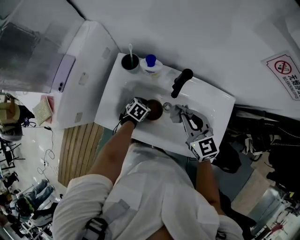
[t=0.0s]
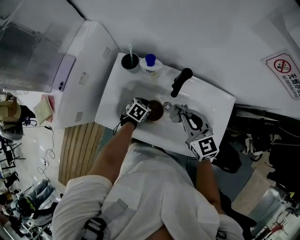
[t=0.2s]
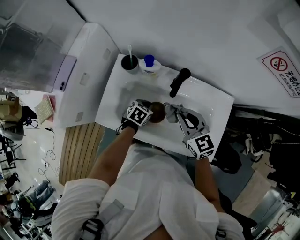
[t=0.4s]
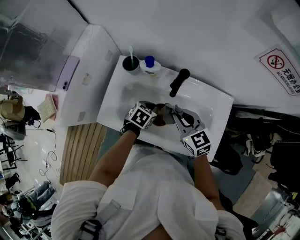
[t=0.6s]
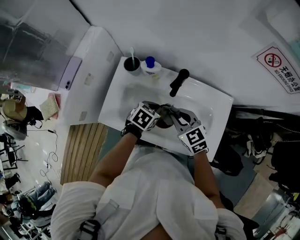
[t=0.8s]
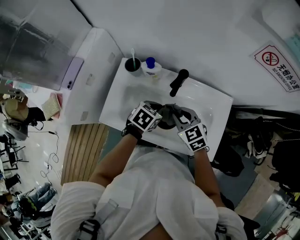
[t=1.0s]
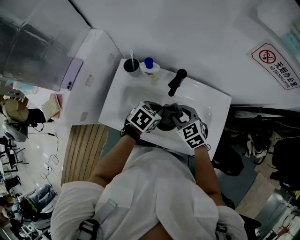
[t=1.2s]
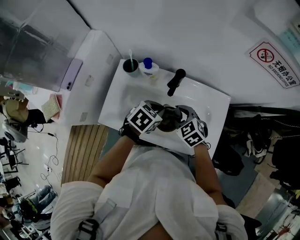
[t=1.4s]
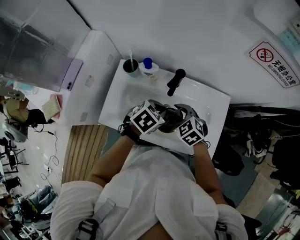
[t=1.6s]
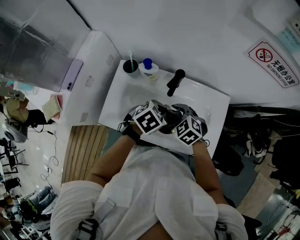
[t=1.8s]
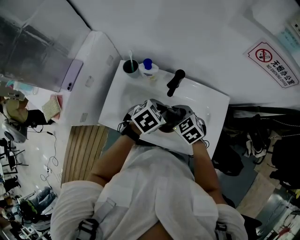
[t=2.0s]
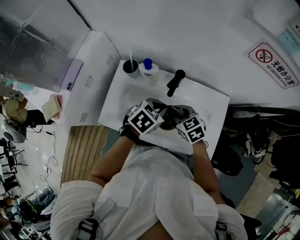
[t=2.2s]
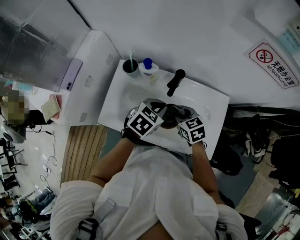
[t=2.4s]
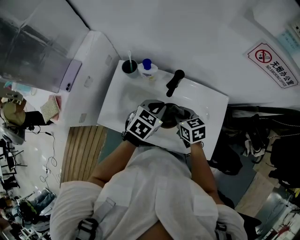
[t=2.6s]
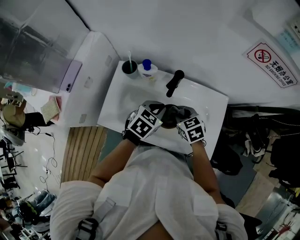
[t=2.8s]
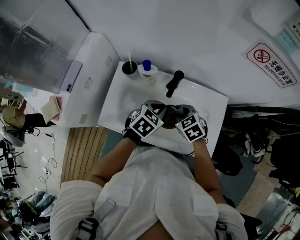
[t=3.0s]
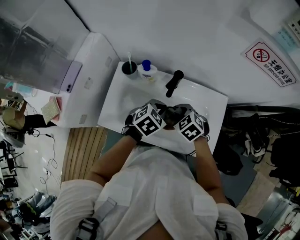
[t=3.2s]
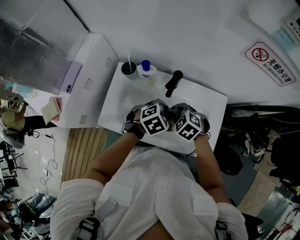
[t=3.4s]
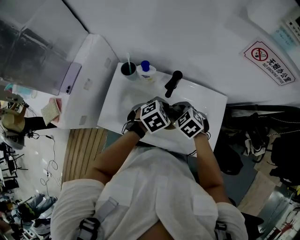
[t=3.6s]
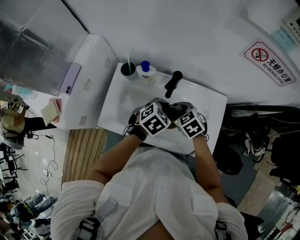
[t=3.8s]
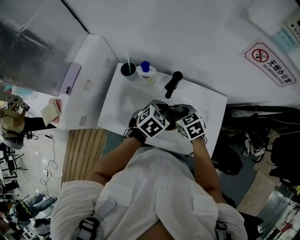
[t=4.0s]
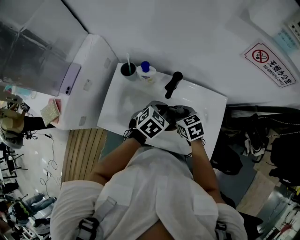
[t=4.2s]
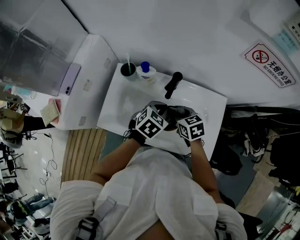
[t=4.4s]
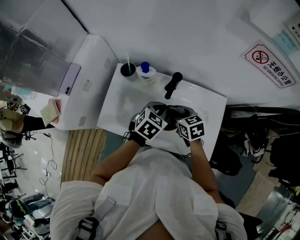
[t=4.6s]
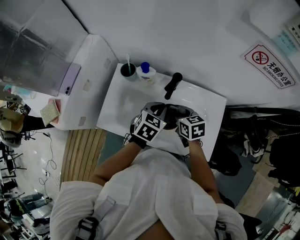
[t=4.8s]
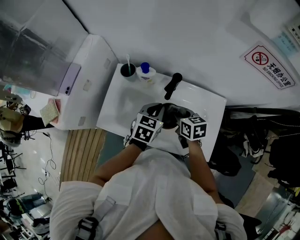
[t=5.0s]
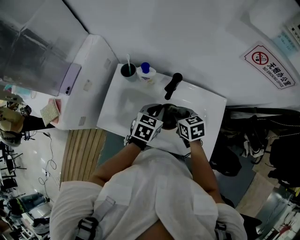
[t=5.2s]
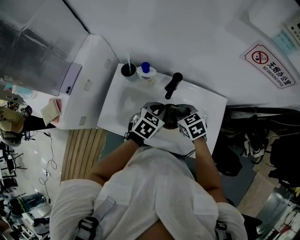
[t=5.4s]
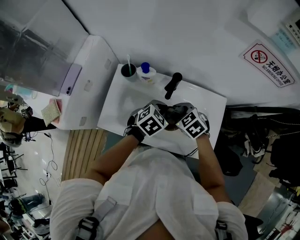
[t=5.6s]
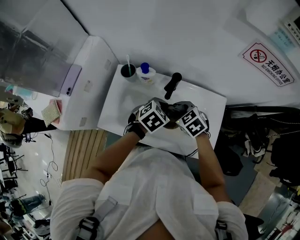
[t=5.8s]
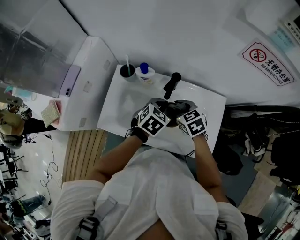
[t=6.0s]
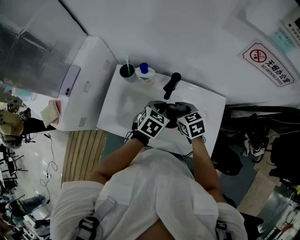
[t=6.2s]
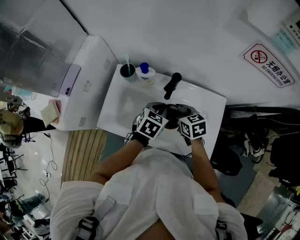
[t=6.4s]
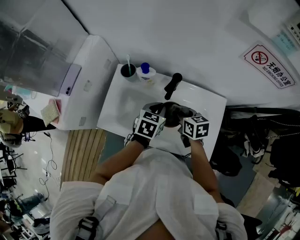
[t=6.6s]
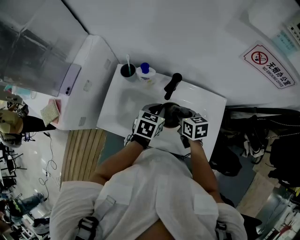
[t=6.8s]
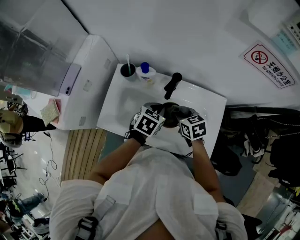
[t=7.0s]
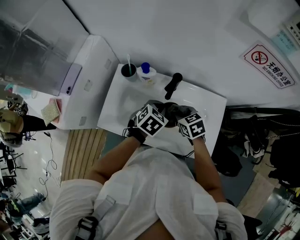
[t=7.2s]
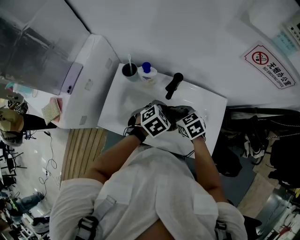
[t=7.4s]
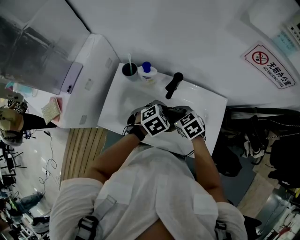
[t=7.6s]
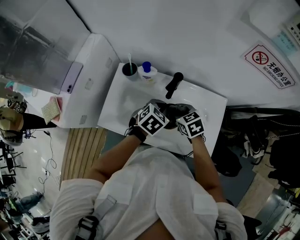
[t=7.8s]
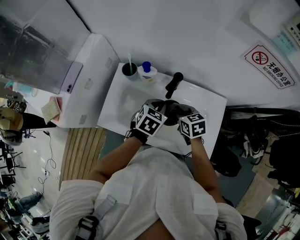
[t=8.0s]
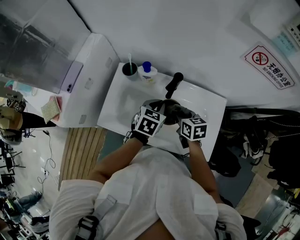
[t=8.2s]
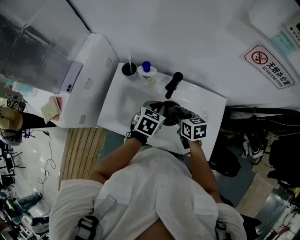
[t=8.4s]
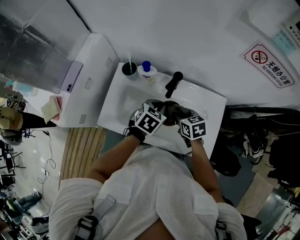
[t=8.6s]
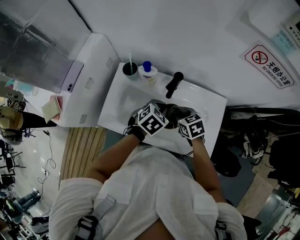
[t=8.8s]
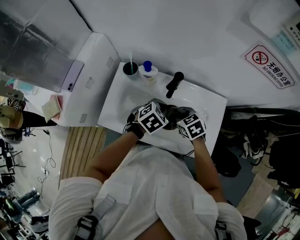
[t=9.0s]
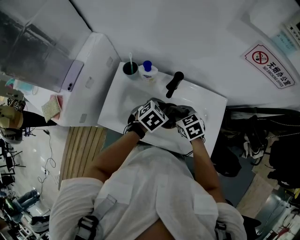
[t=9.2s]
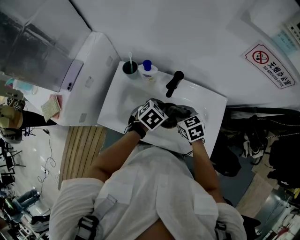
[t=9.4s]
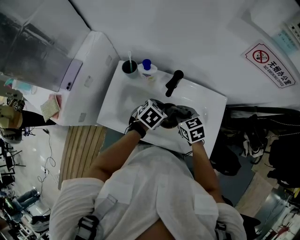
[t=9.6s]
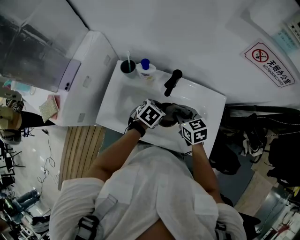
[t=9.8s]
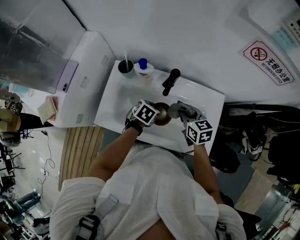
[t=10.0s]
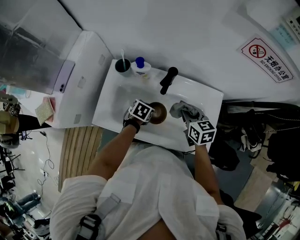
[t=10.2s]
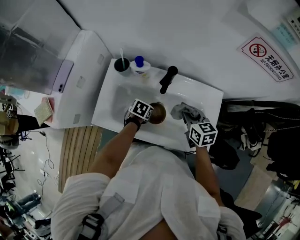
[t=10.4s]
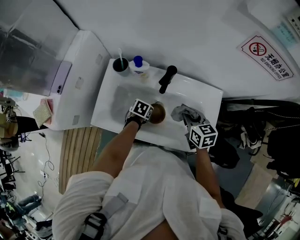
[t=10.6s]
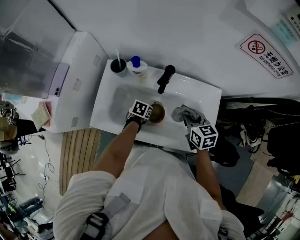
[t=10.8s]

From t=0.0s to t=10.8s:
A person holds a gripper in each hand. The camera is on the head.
From t=0.0s to t=1.6s: The right gripper travels downward by about 5 cm, rotates roughly 30 degrees, and opens up, while the left gripper moves upward and to the right, about 25 cm.
From t=1.6s to t=3.0s: The right gripper closes.
From t=3.0s to t=4.6s: The right gripper swivels about 20 degrees.
From t=9.2s to t=10.8s: The right gripper travels to the right by approximately 10 cm, and turns by approximately 30 degrees. Meanwhile the left gripper is displaced downward by about 20 cm, and rotates some 30 degrees.

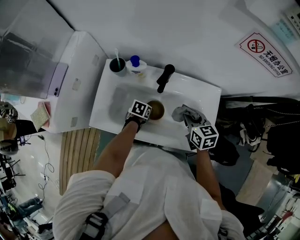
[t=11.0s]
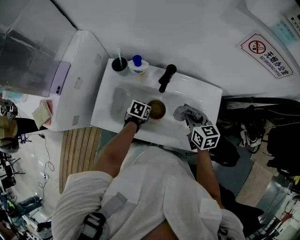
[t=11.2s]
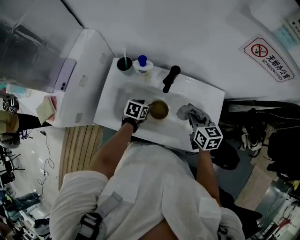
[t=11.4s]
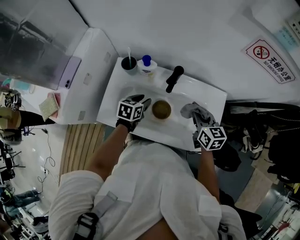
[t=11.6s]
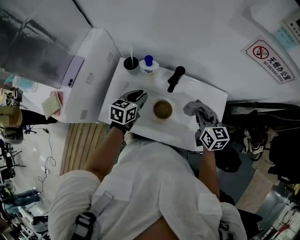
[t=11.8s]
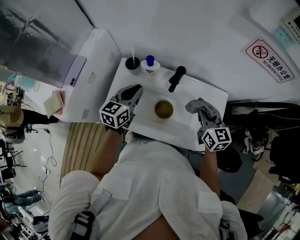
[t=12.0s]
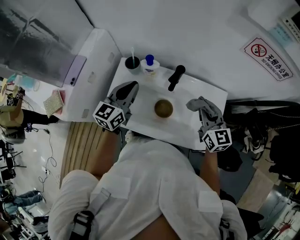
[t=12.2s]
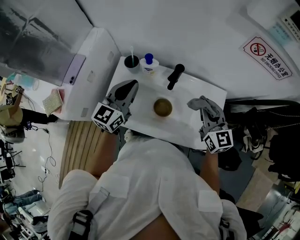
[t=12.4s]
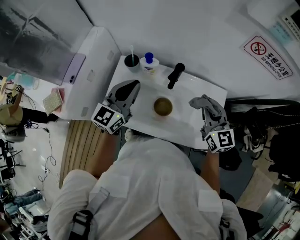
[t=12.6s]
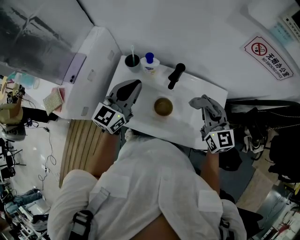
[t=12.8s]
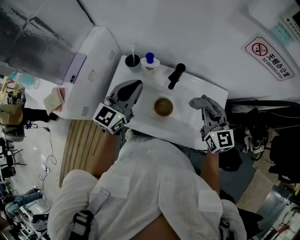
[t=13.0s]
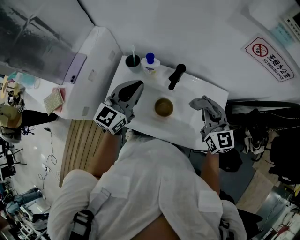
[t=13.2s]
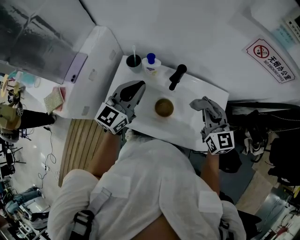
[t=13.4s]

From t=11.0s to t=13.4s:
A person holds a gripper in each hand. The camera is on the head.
From t=11.0s to t=12.2s: The left gripper goes roughly 30 cm upward, tips its fingers upward by roughly 50 degrees, and closes up, while the right gripper goes approximately 10 cm upward, and changes its angle by about 30 degrees.
From t=12.2s to t=13.4s: The left gripper ends up approximately 5 cm from where it was.

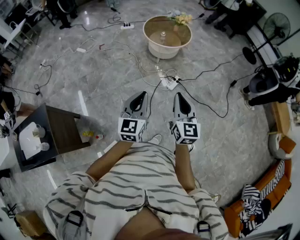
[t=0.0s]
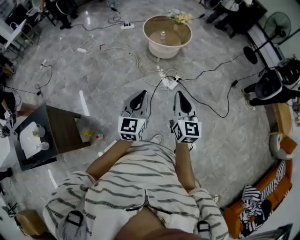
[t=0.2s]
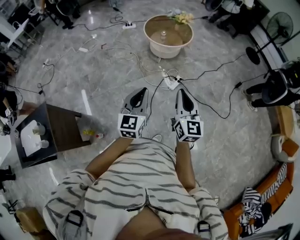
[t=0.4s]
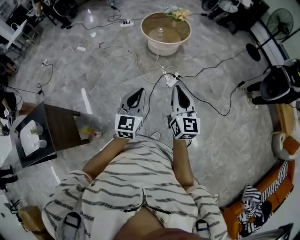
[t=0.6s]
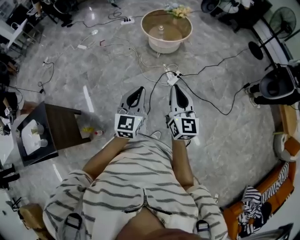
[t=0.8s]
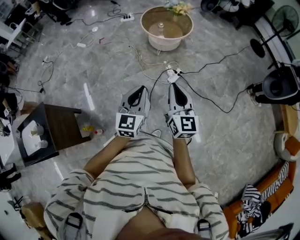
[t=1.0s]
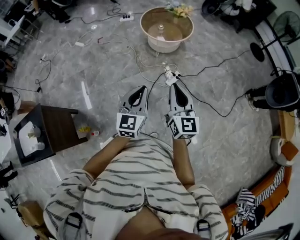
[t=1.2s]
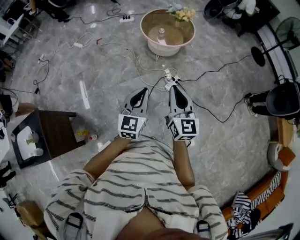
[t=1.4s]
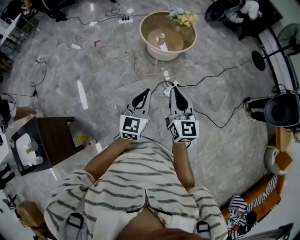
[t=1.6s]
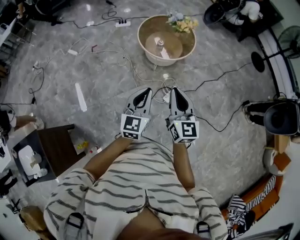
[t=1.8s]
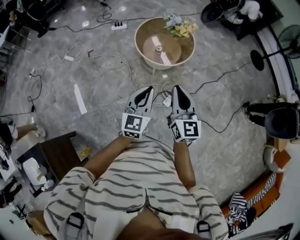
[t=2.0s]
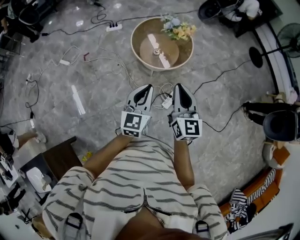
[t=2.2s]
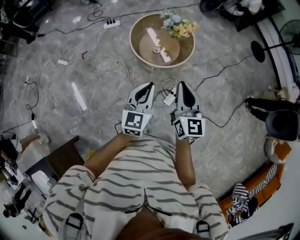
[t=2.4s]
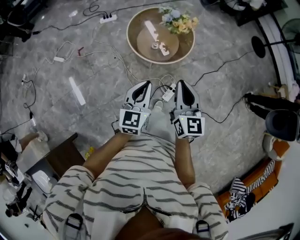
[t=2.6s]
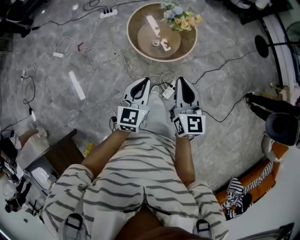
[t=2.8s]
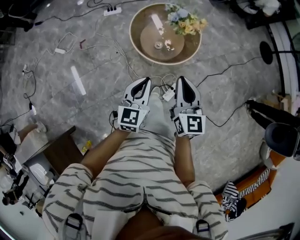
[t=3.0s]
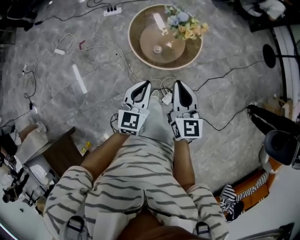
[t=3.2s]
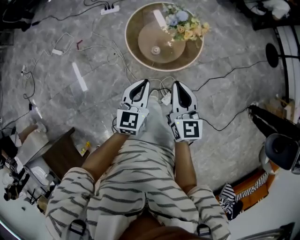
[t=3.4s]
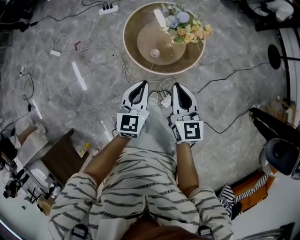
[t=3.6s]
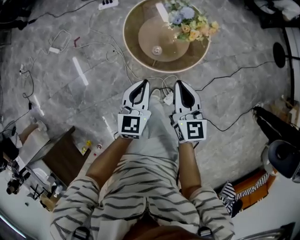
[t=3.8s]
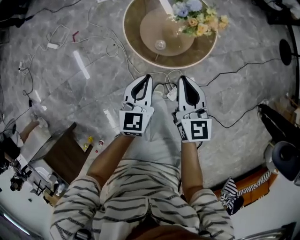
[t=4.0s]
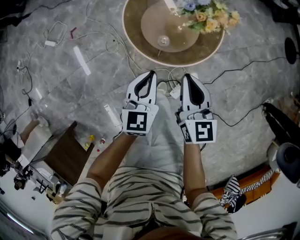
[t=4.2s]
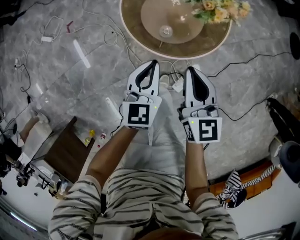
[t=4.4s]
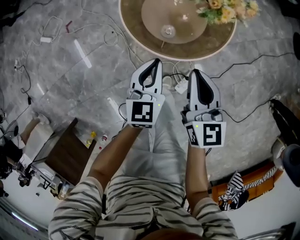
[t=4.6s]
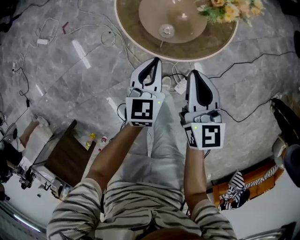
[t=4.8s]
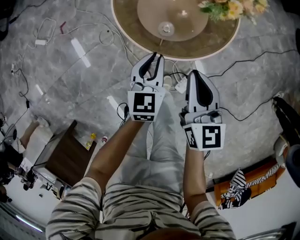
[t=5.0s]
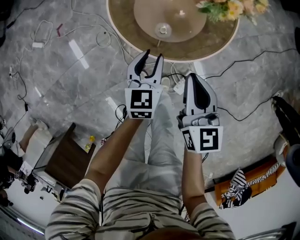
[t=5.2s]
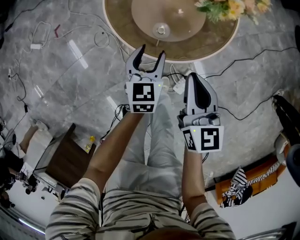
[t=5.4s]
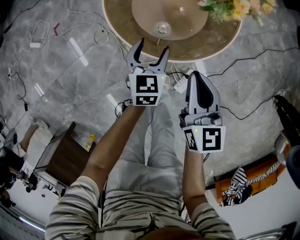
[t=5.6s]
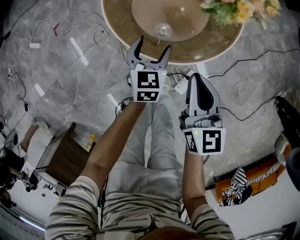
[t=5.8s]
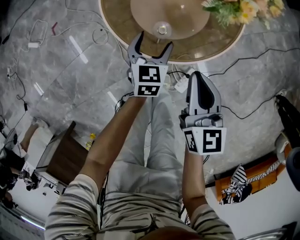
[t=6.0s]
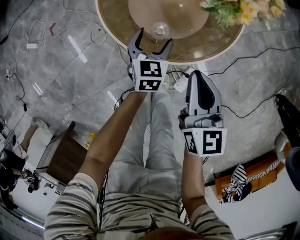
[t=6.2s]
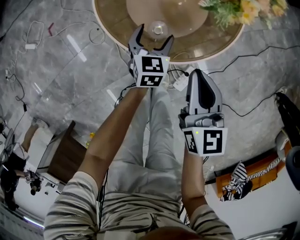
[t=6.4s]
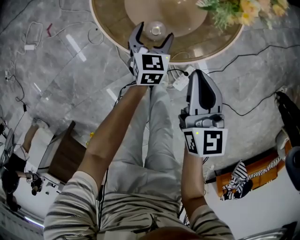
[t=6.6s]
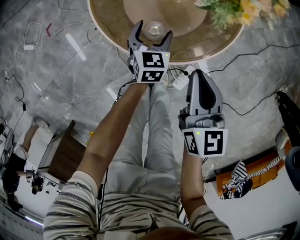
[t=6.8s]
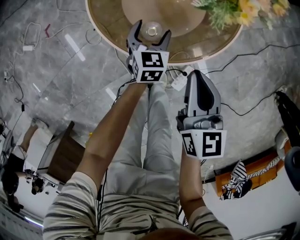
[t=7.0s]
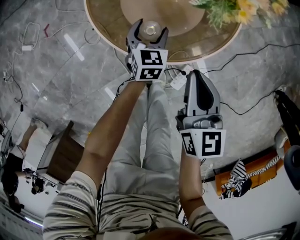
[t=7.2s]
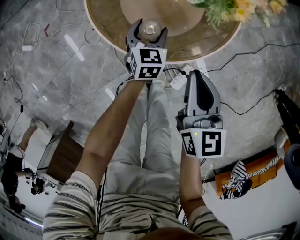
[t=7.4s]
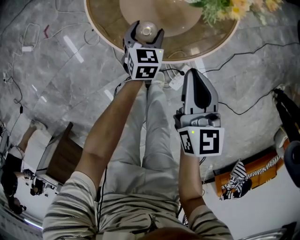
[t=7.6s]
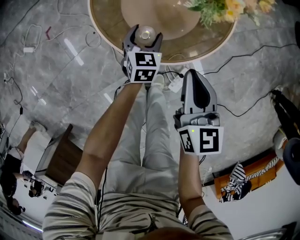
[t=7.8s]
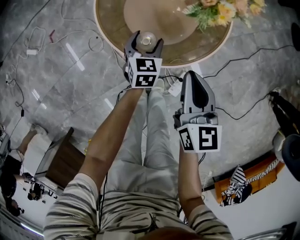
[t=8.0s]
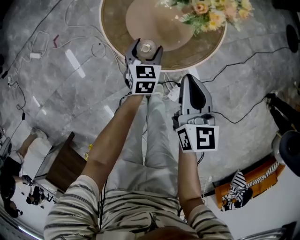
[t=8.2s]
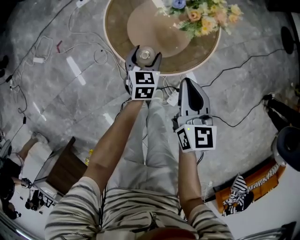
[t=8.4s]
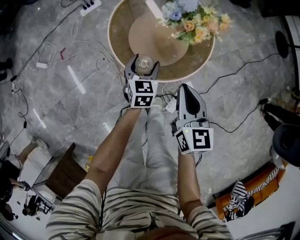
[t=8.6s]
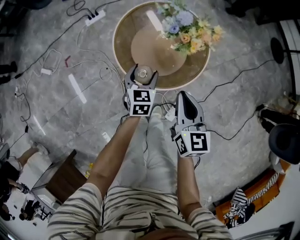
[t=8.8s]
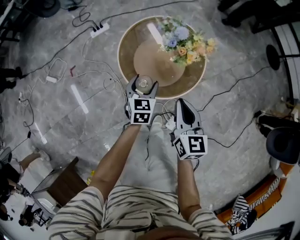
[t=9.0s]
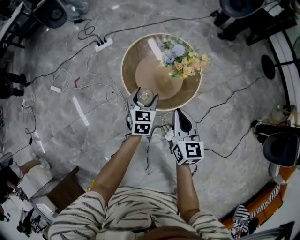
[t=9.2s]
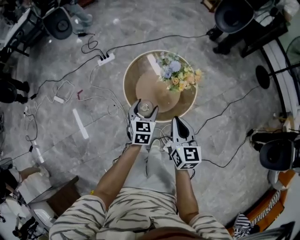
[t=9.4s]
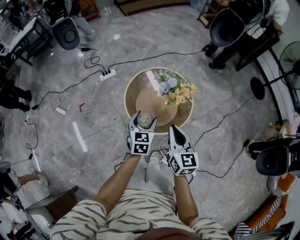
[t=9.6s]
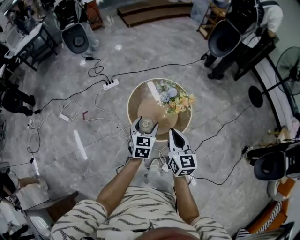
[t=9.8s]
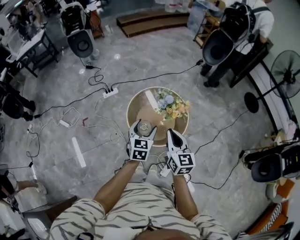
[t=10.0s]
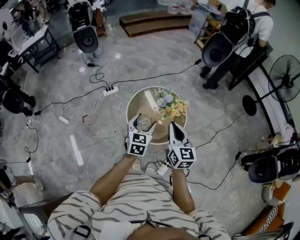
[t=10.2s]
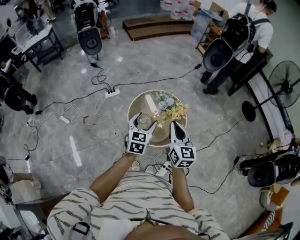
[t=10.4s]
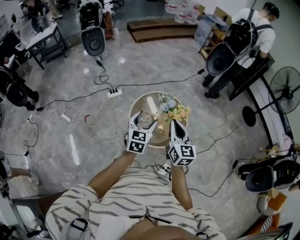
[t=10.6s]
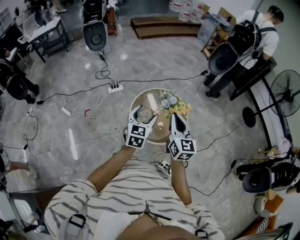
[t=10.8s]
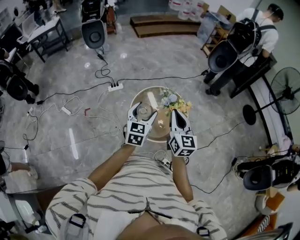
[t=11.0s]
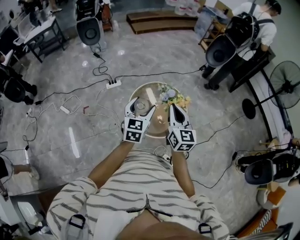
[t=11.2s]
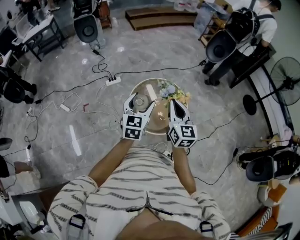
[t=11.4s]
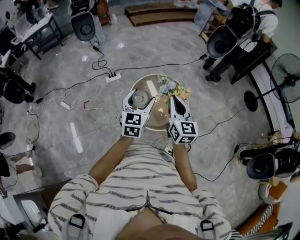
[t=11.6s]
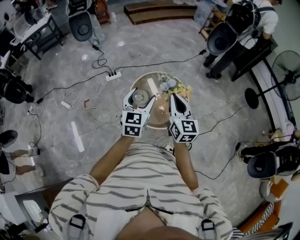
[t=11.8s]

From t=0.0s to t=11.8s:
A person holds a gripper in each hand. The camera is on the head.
From t=0.0s to t=1.4s: The left gripper shifts some 15 cm forward and to the right; the right gripper shifts about 15 cm forward.
From t=1.4s to t=3.0s: The pair of grippers is taken forward, roughly 50 cm.
From t=3.0s to t=4.4s: The grippers both shift downward and forward by roughly 25 cm.
From t=4.4s to t=6.0s: The left gripper moves downward, about 25 cm, and opens, while the right gripper moves downward, approximately 15 cm.
From t=6.0s to t=7.4s: The left gripper shifts some 5 cm downward.
From t=7.4s to t=8.8s: The grippers both shift upward by approximately 20 cm.
From t=8.8s to t=10.4s: The grippers both shift upward by some 35 cm.
From t=10.4s to t=11.8s: The left gripper is displaced upward by about 5 cm.
